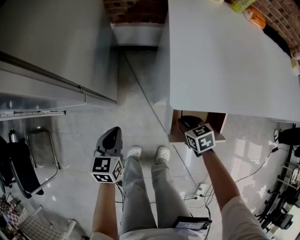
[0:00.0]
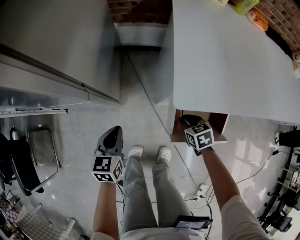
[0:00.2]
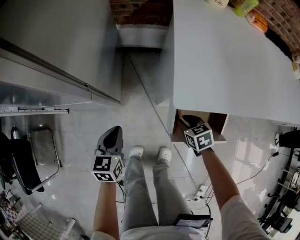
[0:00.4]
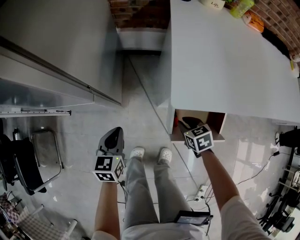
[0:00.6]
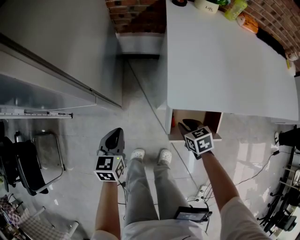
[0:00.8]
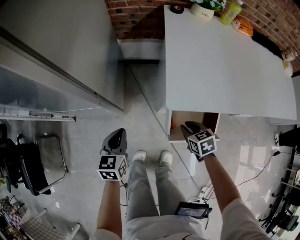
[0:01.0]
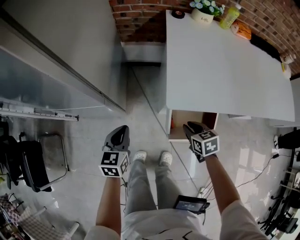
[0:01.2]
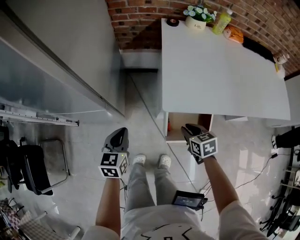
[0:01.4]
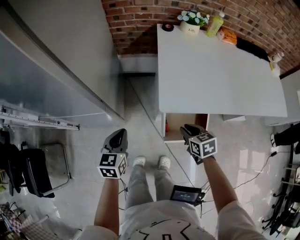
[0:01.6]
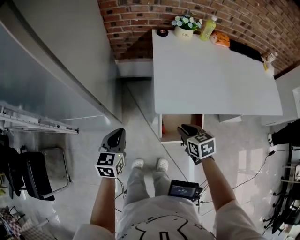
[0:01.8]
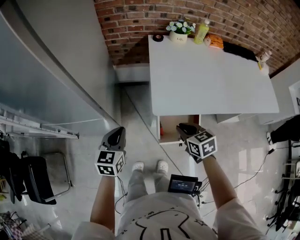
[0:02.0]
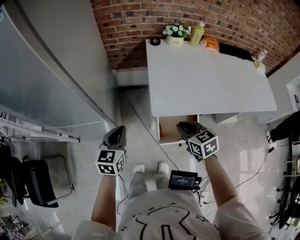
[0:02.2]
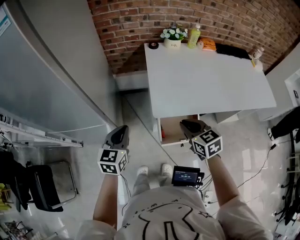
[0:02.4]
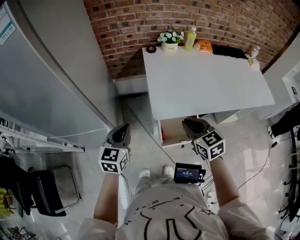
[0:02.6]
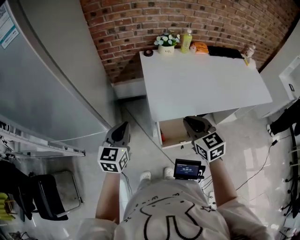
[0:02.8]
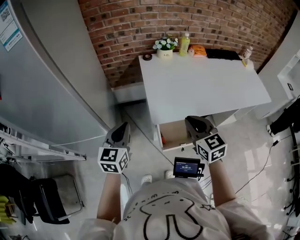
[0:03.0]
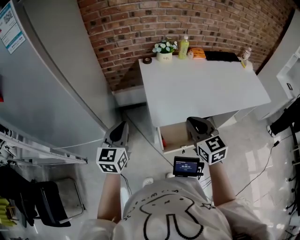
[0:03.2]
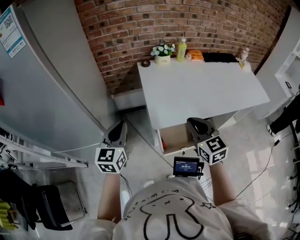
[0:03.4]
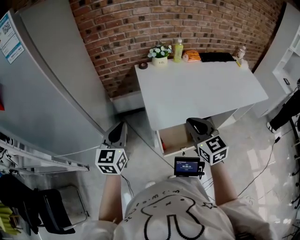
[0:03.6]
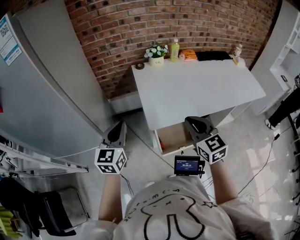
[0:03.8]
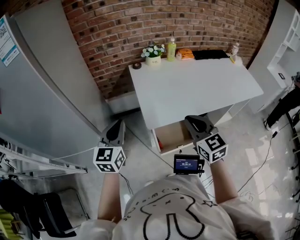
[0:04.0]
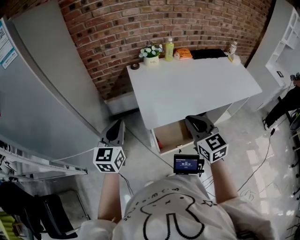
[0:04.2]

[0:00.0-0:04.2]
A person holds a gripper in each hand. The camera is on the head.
0:00.0 to 0:01.4: The two grippers go some 15 cm upward.
0:01.4 to 0:02.8: Both grippers move upward, some 20 cm. The left gripper changes its angle by approximately 20 degrees; the right gripper swivels roughly 30 degrees.
0:02.8 to 0:04.2: The left gripper moves upward, approximately 5 cm, while the right gripper changes place by about 5 cm.

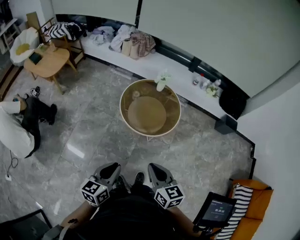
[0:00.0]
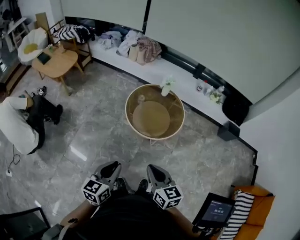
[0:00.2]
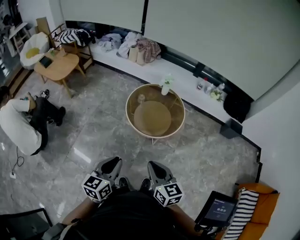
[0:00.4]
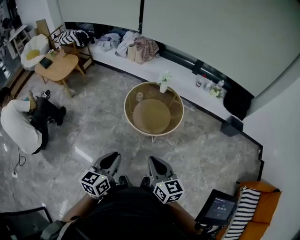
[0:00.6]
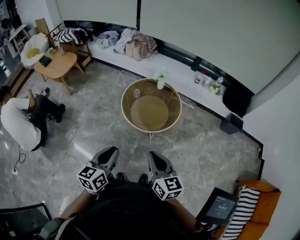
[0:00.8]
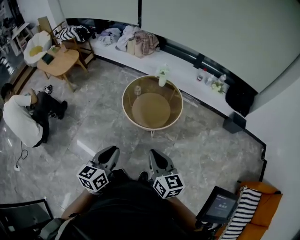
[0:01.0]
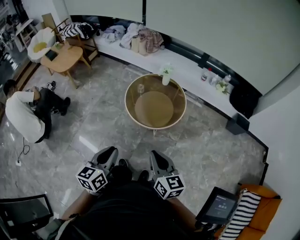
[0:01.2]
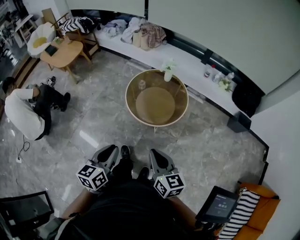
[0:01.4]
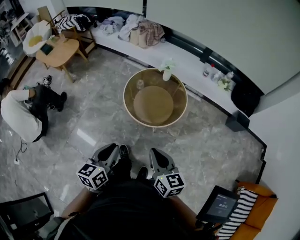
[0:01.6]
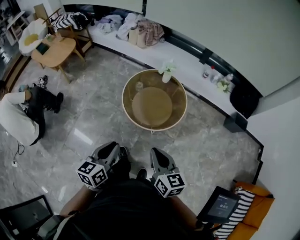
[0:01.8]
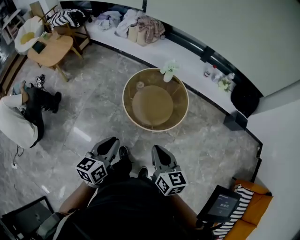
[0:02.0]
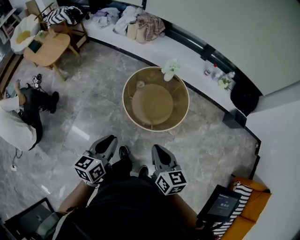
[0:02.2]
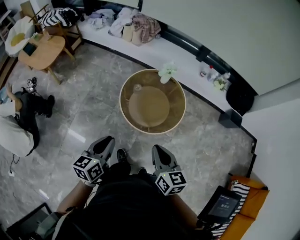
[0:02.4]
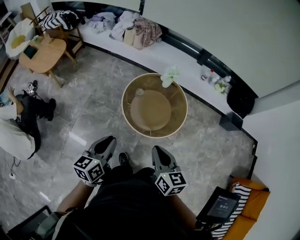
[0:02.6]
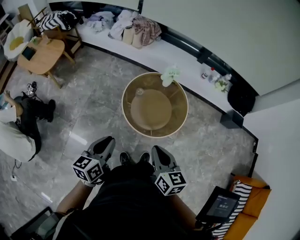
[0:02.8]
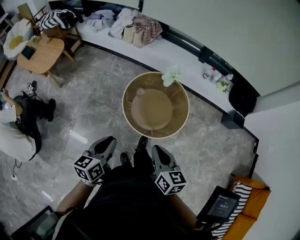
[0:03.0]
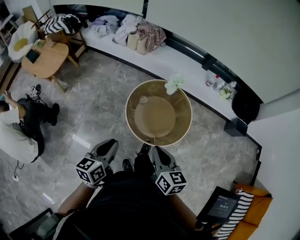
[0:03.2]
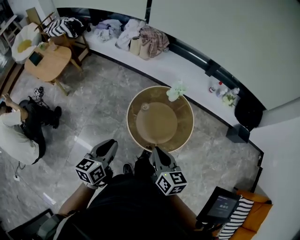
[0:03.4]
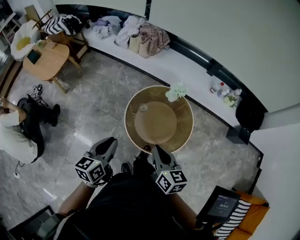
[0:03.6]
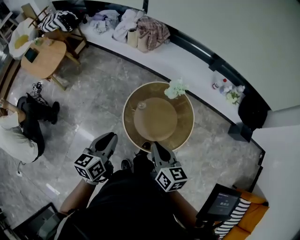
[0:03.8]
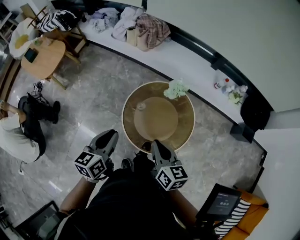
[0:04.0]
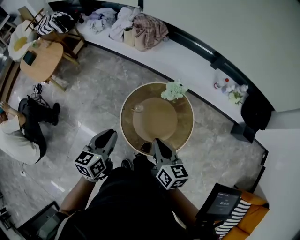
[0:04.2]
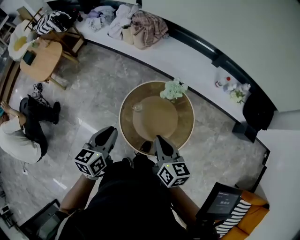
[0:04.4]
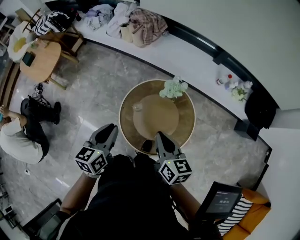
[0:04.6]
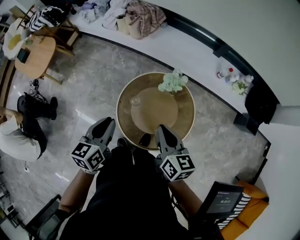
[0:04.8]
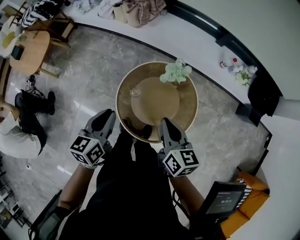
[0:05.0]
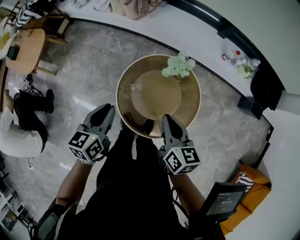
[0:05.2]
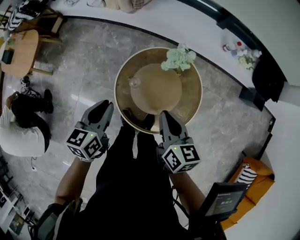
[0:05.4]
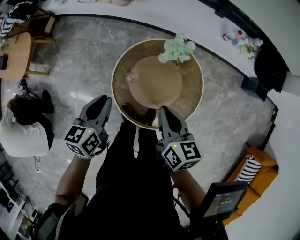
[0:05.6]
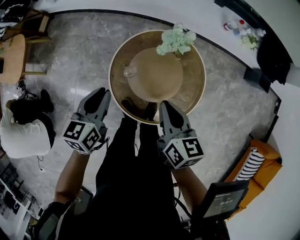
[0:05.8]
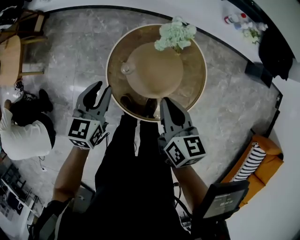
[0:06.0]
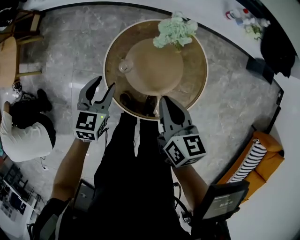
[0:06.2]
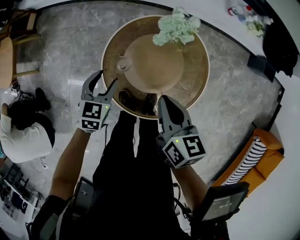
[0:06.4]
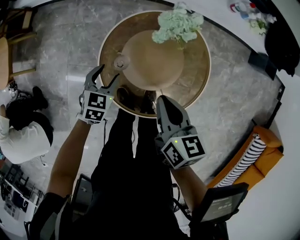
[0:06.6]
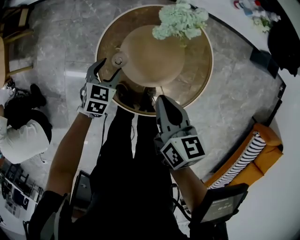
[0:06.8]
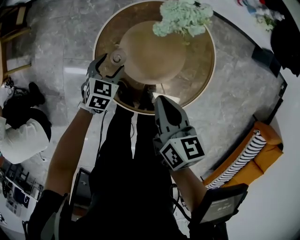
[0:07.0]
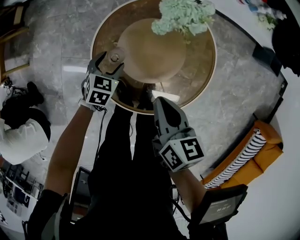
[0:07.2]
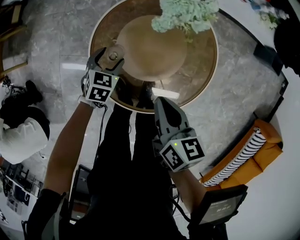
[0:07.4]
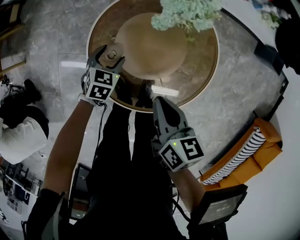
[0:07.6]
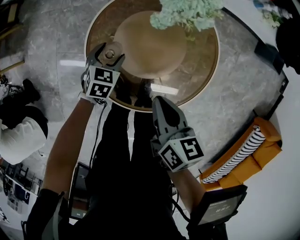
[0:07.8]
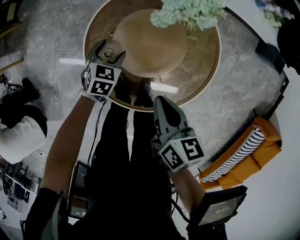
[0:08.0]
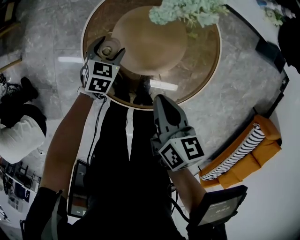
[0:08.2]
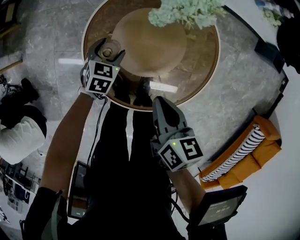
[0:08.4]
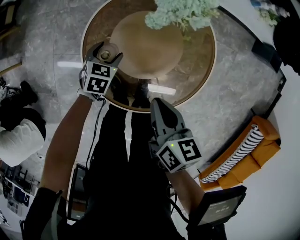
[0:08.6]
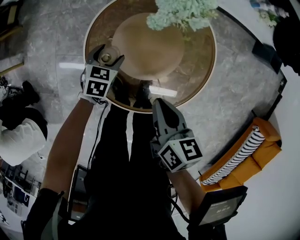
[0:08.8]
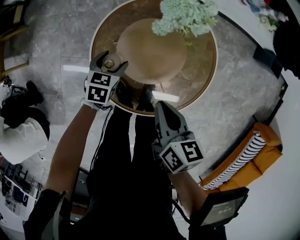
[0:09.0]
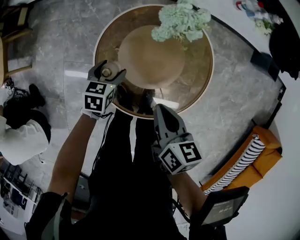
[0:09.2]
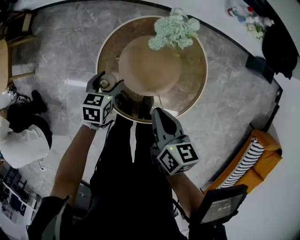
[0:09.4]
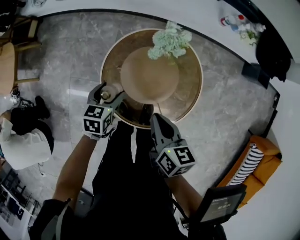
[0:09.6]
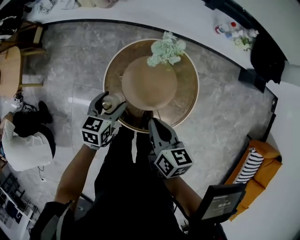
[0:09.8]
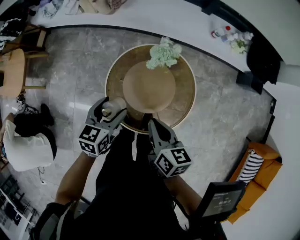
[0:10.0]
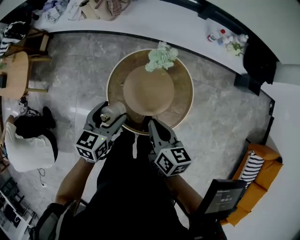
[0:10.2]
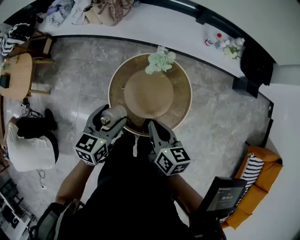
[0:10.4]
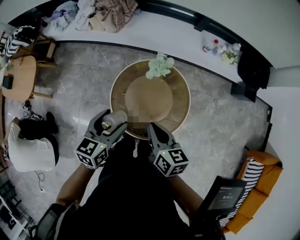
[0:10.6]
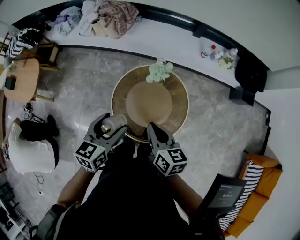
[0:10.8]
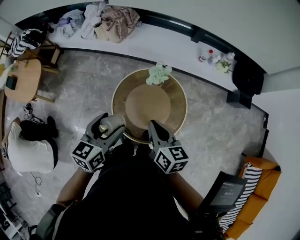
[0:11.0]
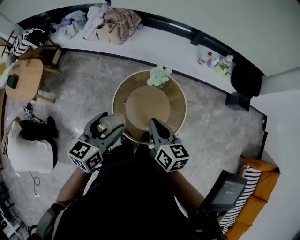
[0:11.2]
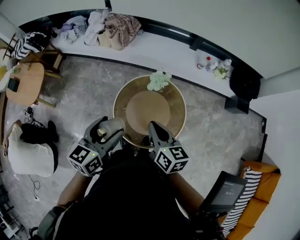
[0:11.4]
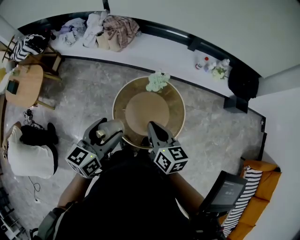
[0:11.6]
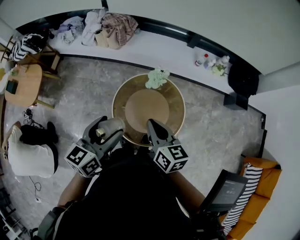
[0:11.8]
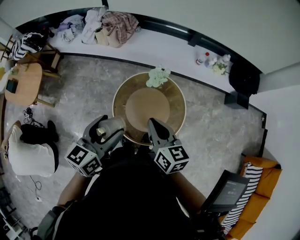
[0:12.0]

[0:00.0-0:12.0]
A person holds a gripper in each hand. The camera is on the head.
0:00.0 to 0:01.6: Both grippers travel together to the right, approximately 5 cm.
0:01.6 to 0:03.0: Both grippers move forward and to the left, some 20 cm.
0:03.0 to 0:04.4: Both grippers travel together forward, about 25 cm.
0:04.4 to 0:06.0: Both grippers travel together downward and forward, roughly 15 cm. The left gripper turns by approximately 20 degrees.
0:06.0 to 0:07.6: The left gripper travels downward by roughly 30 cm, rotates some 30 degrees, and opens, while the right gripper heads downward, covering some 15 cm.
0:07.6 to 0:09.0: There are only small adjustments of the grippers.
0:09.0 to 0:10.4: The right gripper shifts approximately 20 cm upward. Meanwhile the left gripper travels upward by approximately 35 cm, and changes its angle by approximately 30 degrees.
0:10.4 to 0:12.0: Both grippers move upward, about 15 cm.

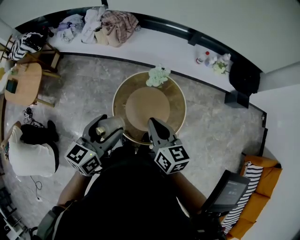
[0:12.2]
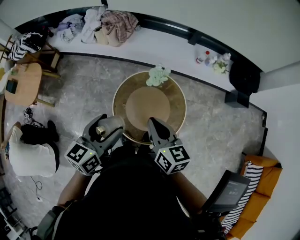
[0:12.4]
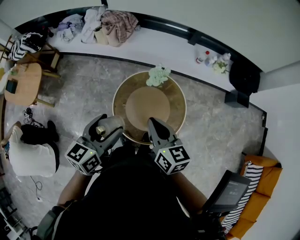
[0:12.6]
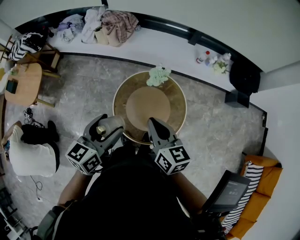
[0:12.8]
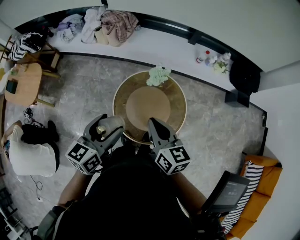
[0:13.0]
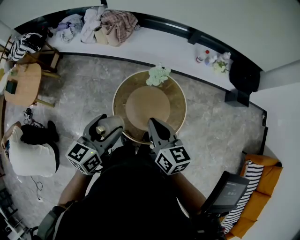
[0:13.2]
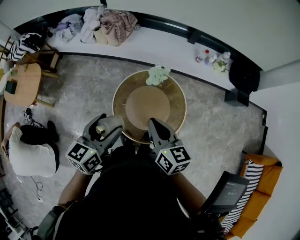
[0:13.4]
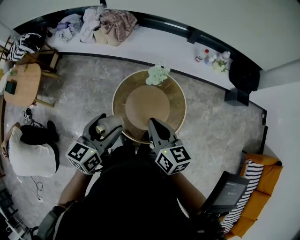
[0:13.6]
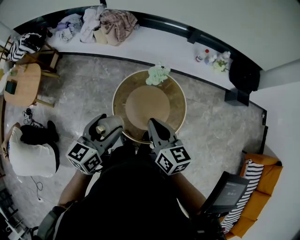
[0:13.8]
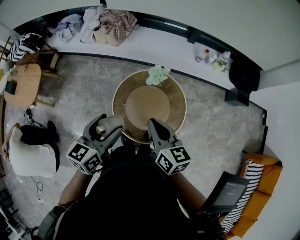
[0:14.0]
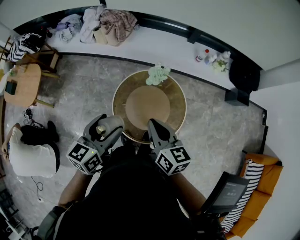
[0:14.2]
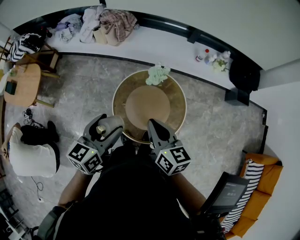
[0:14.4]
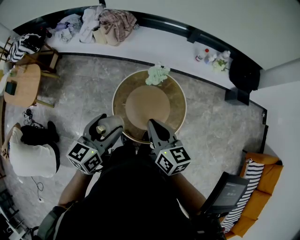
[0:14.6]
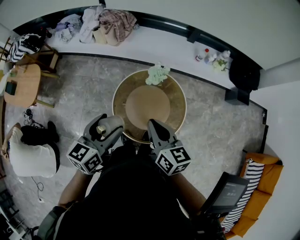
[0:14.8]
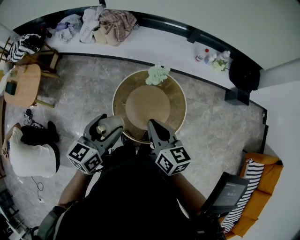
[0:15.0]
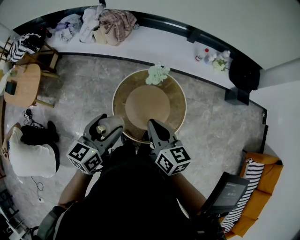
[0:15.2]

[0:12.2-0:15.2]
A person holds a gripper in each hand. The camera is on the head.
0:12.2 to 0:13.8: The grippers stay close to where they were, moving slightly.
0:13.8 to 0:15.2: The two grippers keep their place.

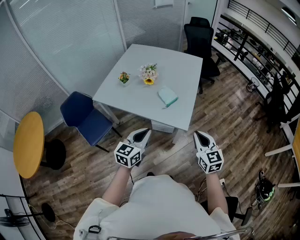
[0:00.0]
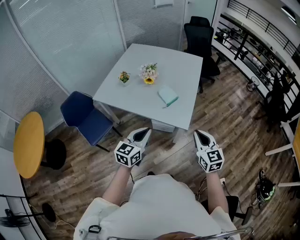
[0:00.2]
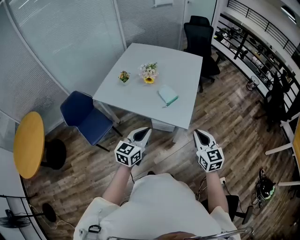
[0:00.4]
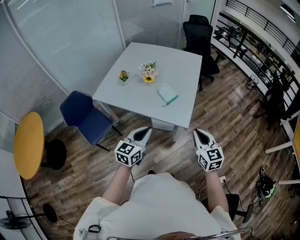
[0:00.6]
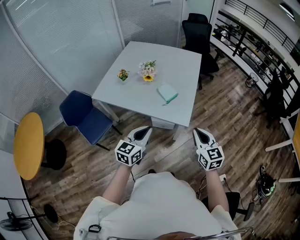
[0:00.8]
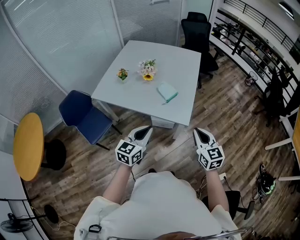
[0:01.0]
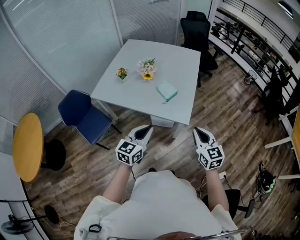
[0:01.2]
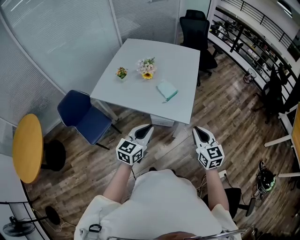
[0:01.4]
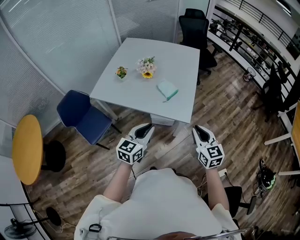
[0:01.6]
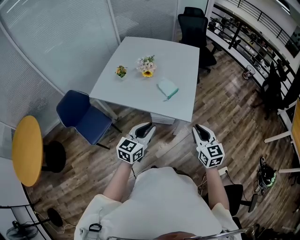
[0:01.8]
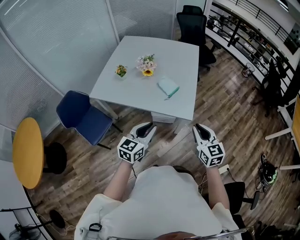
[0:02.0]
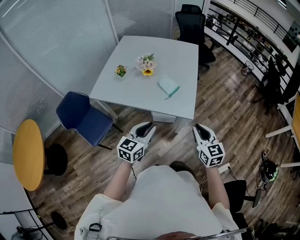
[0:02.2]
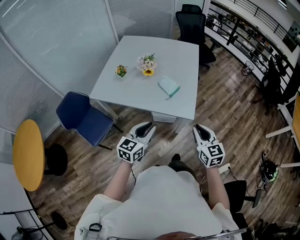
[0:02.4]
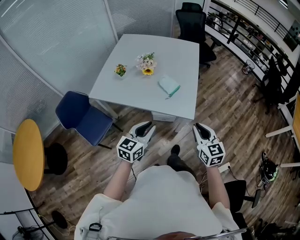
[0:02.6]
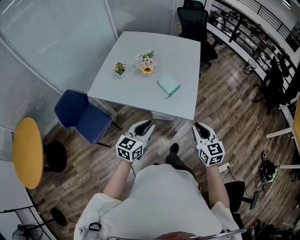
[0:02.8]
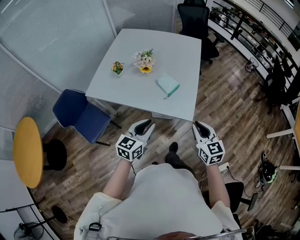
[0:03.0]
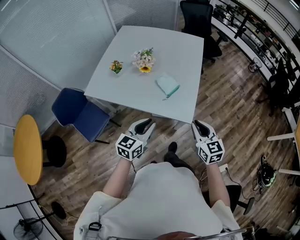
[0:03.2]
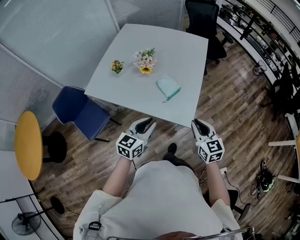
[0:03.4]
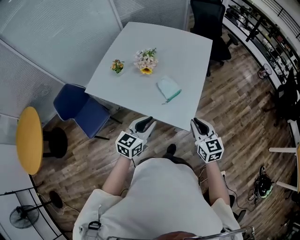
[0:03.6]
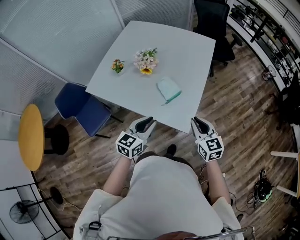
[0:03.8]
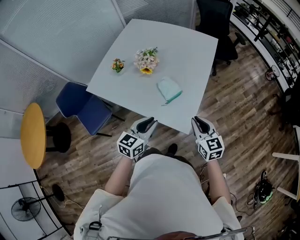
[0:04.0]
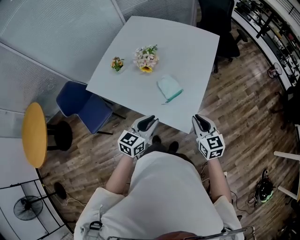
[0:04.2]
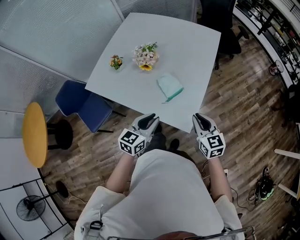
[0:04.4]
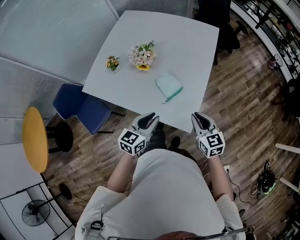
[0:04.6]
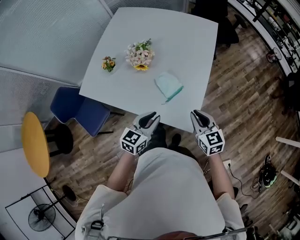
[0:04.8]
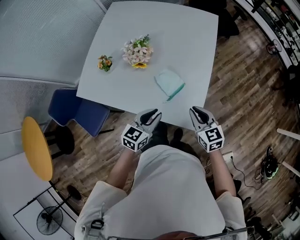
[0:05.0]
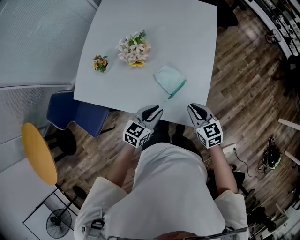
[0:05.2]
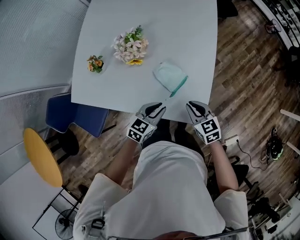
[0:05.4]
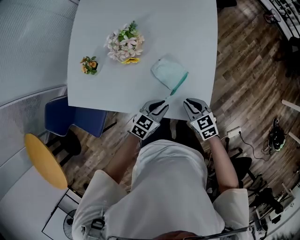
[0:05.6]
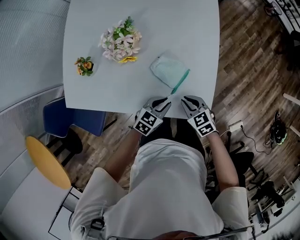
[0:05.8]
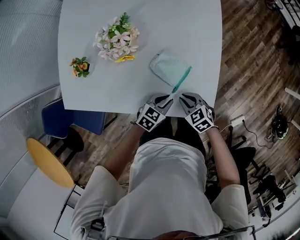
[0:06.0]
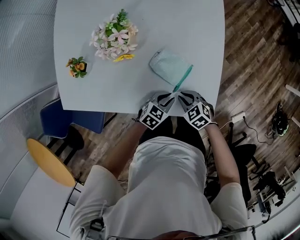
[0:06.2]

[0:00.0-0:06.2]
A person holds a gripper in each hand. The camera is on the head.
0:00.0 to 0:01.6: There are only small adjustments of the grippers.
0:01.6 to 0:03.2: Both grippers move forward, about 10 cm.
0:03.2 to 0:04.6: The right gripper shifts roughly 20 cm forward. The left gripper is displaced forward and to the right by approximately 15 cm.
0:04.6 to 0:06.2: Both grippers travel together downward, approximately 30 cm. The right gripper angles its fingers downward, by roughly 30 degrees, while the left gripper turns by about 40 degrees.
